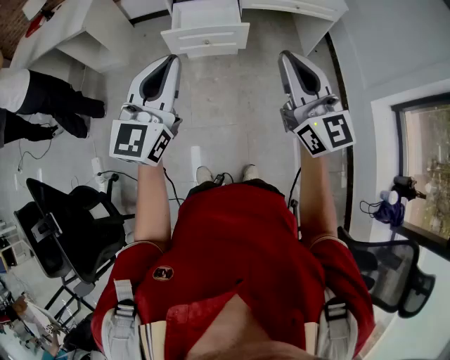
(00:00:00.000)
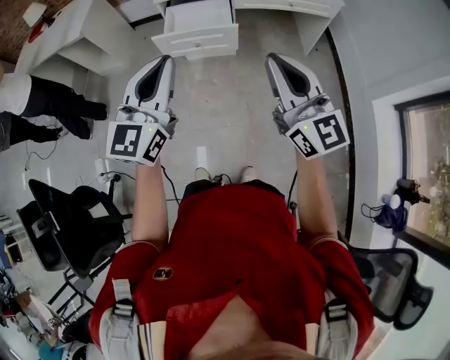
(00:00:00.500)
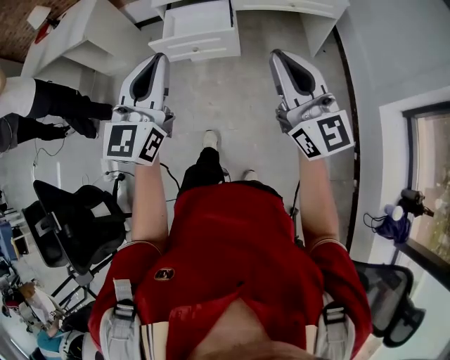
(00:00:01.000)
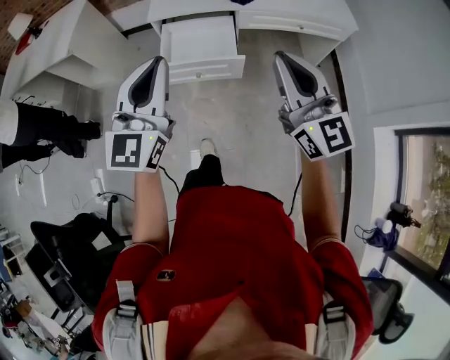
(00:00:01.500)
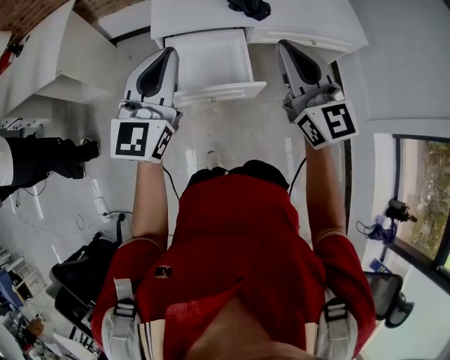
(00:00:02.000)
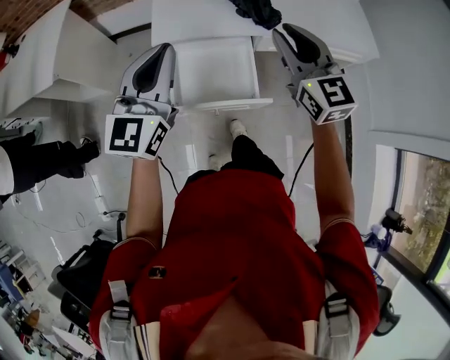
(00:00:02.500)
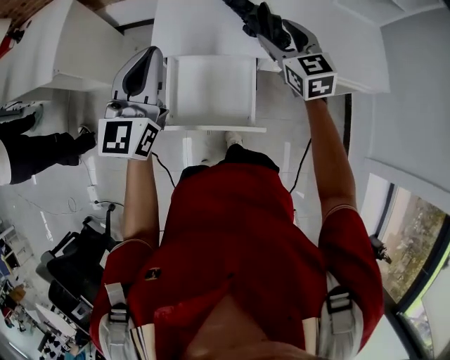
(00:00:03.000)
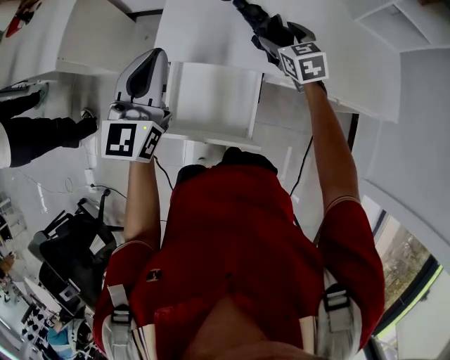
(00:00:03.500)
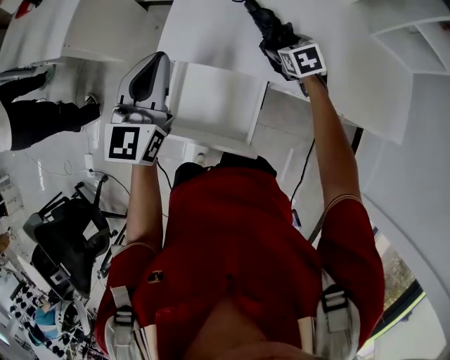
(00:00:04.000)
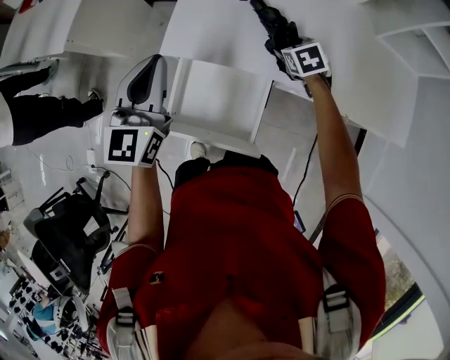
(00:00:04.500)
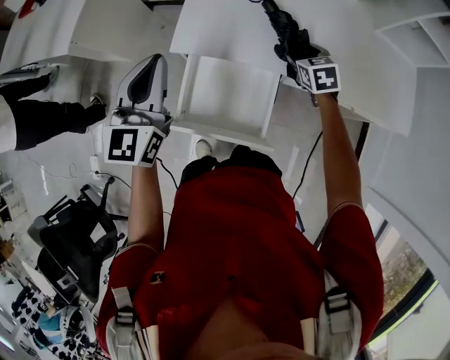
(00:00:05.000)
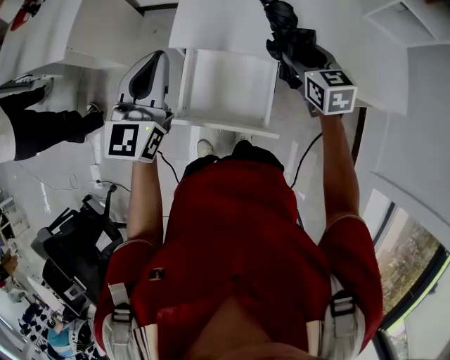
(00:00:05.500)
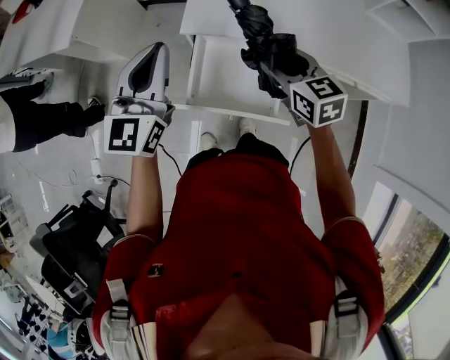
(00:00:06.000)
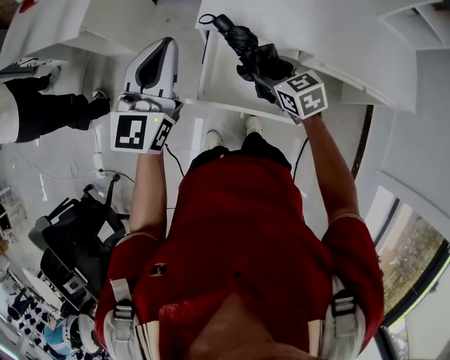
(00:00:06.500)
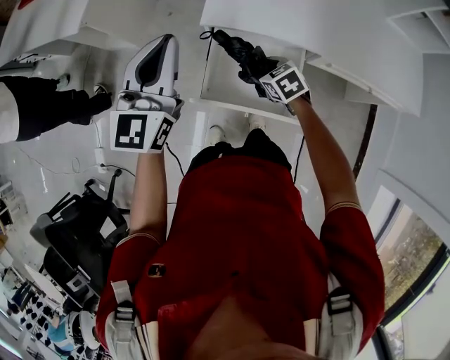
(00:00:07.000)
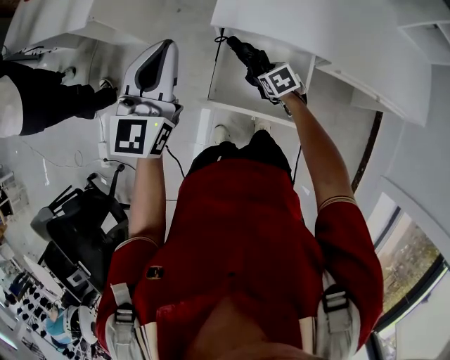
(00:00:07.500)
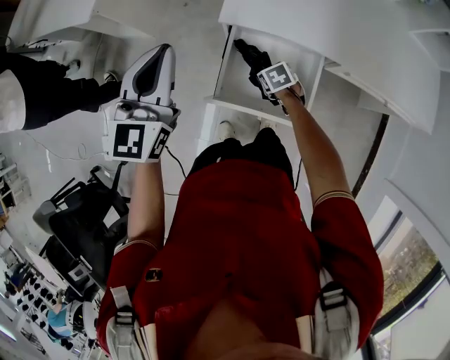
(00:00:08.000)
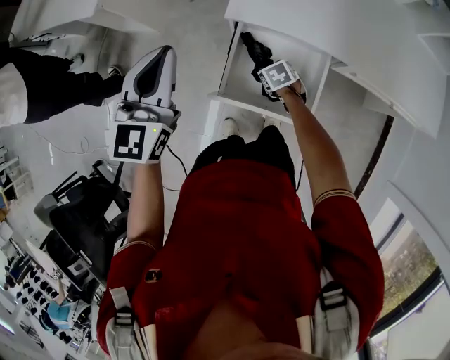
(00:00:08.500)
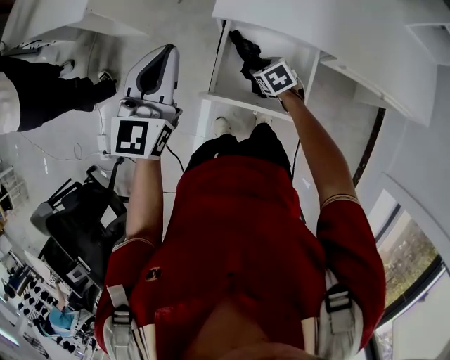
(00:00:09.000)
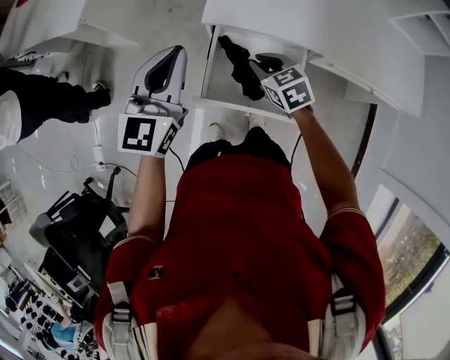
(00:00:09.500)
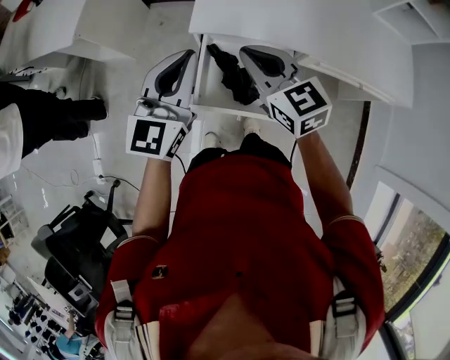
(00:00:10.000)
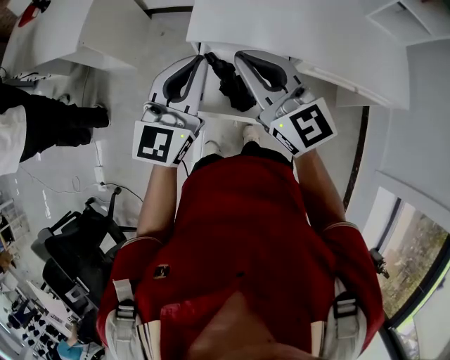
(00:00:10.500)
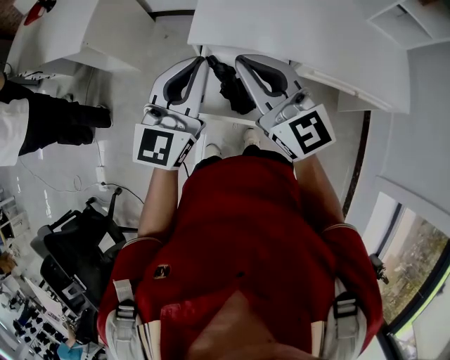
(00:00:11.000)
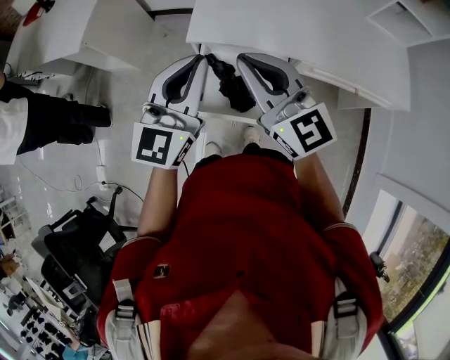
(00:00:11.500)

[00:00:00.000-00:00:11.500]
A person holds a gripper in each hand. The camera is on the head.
00:00:00.000 to 00:00:02.000: Both grippers travel together forward, roughly 40 cm.
00:00:02.000 to 00:00:04.000: The left gripper goes roughly 25 cm forward, and turns by some 20 degrees; the right gripper is displaced forward and downward by approximately 50 cm, points its fingers about 60 degrees further downward, and opens.
00:00:04.000 to 00:00:06.000: The right gripper shifts some 30 cm backward, to the left and upward, rotates some 30 degrees, and closes up, while the left gripper moves to the left and backward, about 15 cm.
00:00:06.000 to 00:00:07.500: The left gripper shifts some 5 cm to the left; the right gripper moves downward, roughly 25 cm, and points its fingers approximately 40 degrees further downward.
00:00:07.500 to 00:00:09.500: The right gripper goes some 15 cm upward, swivels approximately 20 degrees, and closes up.
00:00:09.500 to 00:00:11.500: The right gripper goes approximately 25 cm upward, and angles its fingers upward, by roughly 50 degrees, while the left gripper shifts roughly 10 cm to the right and upward.

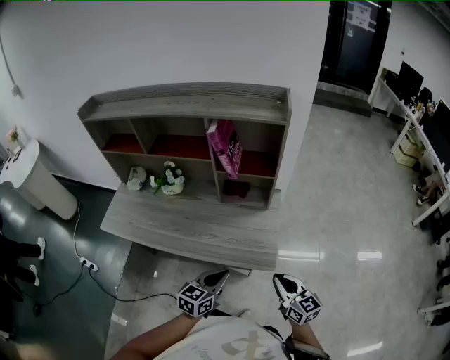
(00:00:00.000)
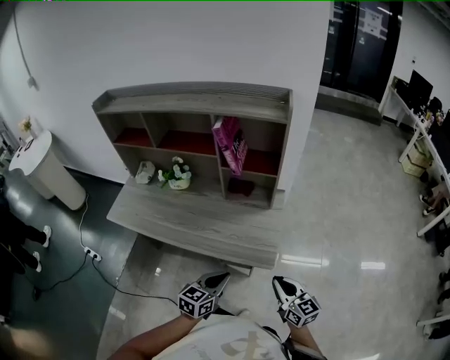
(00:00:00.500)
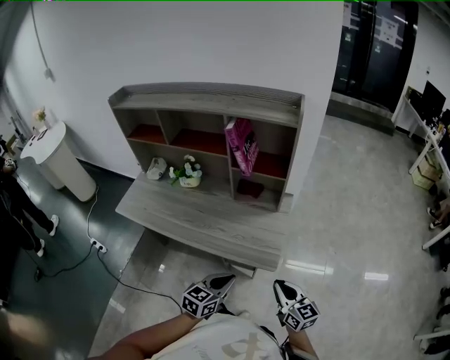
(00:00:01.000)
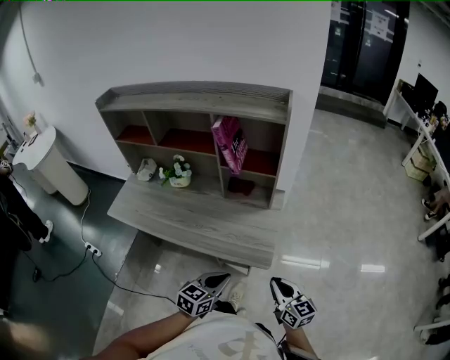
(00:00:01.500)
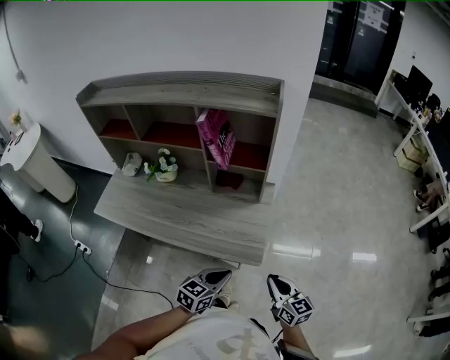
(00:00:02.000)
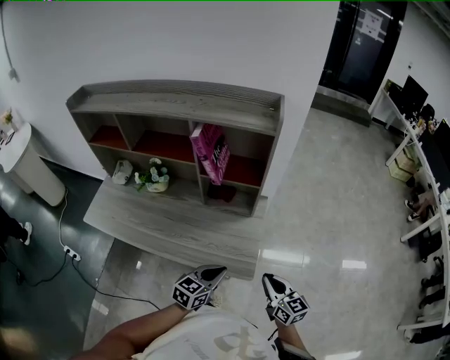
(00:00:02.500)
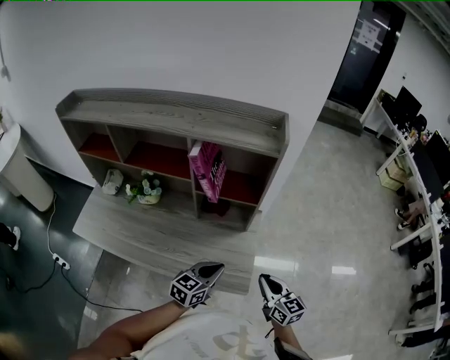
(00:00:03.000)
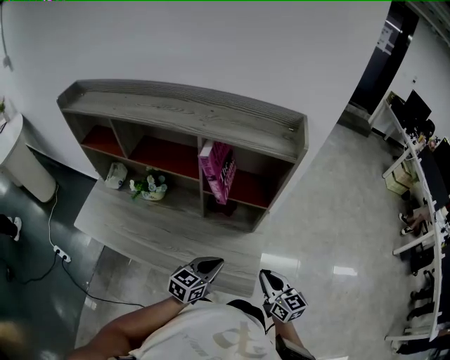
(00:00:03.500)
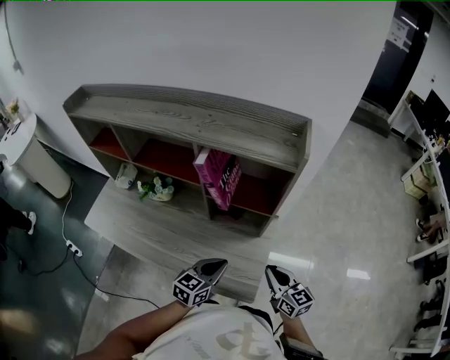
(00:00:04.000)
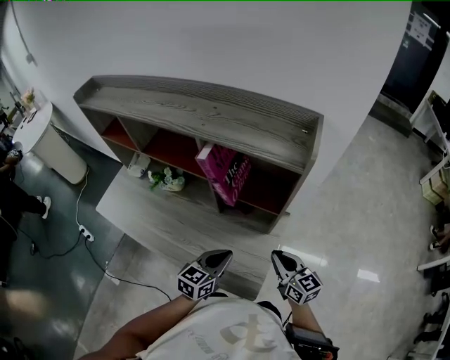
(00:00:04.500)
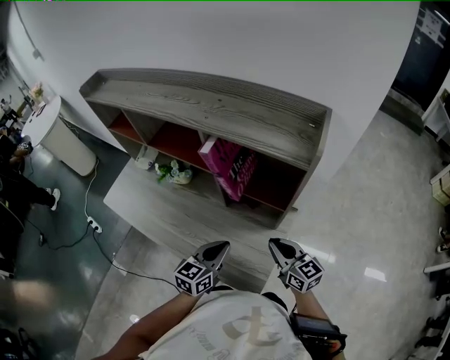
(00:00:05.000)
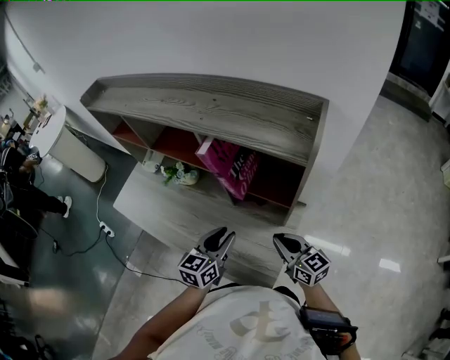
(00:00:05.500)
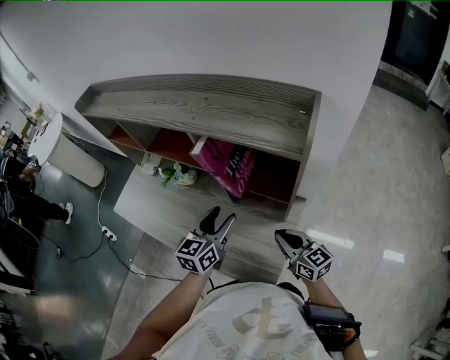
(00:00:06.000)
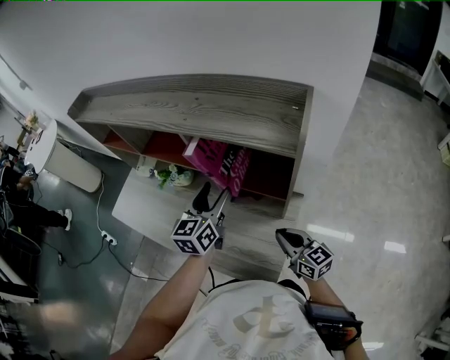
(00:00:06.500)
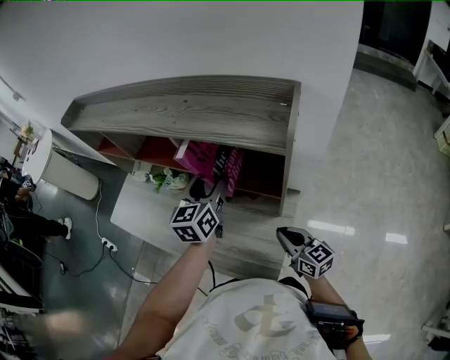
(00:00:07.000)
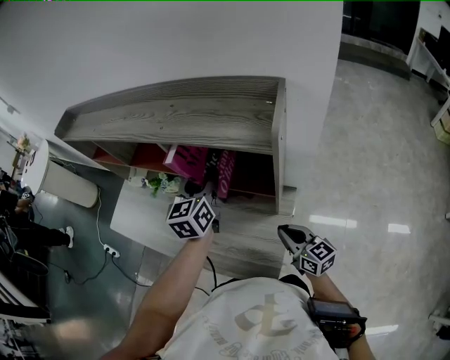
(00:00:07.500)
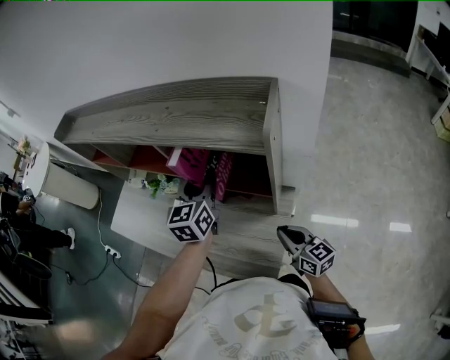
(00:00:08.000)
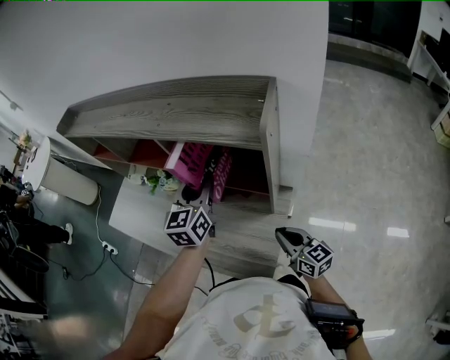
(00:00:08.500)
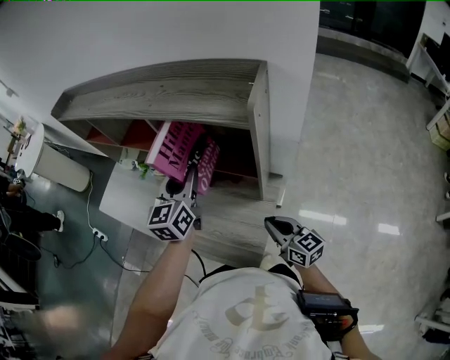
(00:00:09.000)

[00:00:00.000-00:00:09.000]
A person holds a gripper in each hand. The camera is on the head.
00:00:00.000 to 00:00:02.000: Both grippers travel together to the right, roughly 5 cm.
00:00:02.000 to 00:00:04.500: The grippers both shift forward by approximately 25 cm.
00:00:04.500 to 00:00:07.000: The left gripper moves forward and upward, roughly 25 cm, changes its angle by roughly 30 degrees, and opens.
00:00:07.000 to 00:00:09.000: The left gripper ends up about 5 cm from where it was, and closes its fingers.

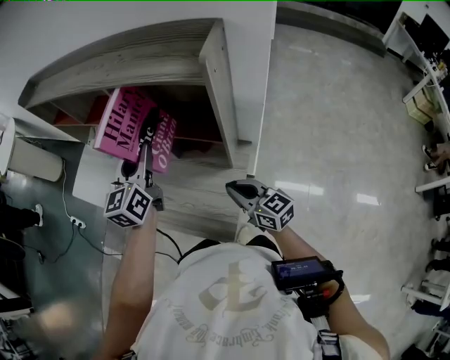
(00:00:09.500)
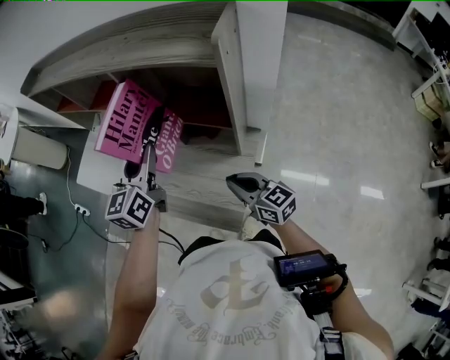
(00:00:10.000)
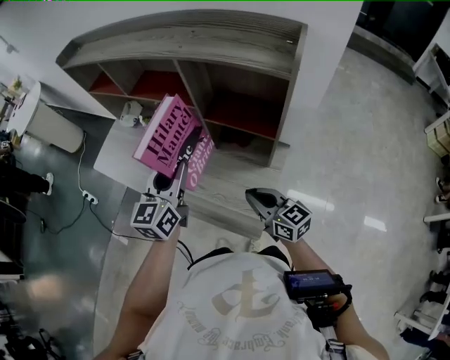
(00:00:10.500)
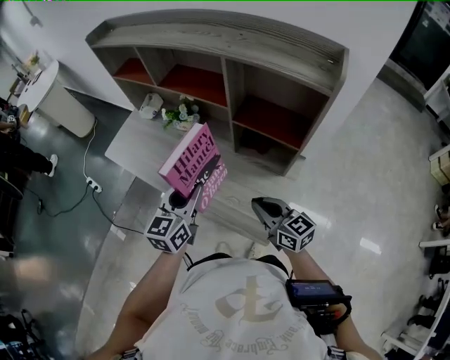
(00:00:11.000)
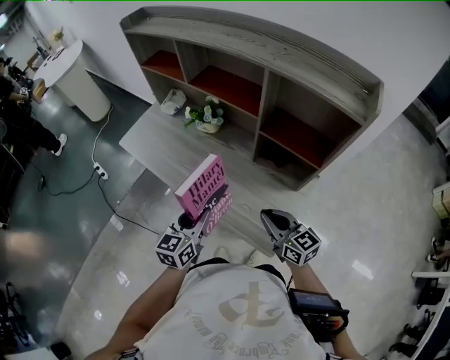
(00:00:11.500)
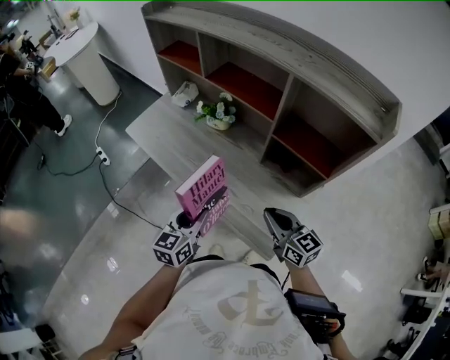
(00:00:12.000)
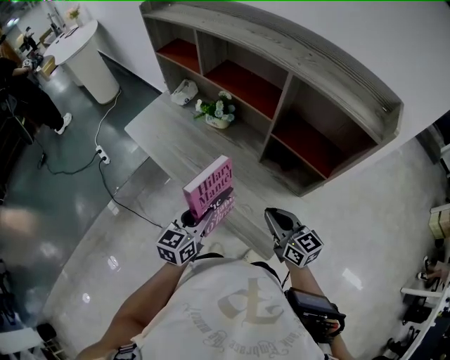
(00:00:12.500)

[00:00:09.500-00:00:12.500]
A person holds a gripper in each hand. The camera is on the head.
00:00:09.500 to 00:00:11.000: The right gripper shifts about 15 cm to the left and upward, while the left gripper heads to the left and backward, covering about 20 cm.
00:00:11.000 to 00:00:12.500: The left gripper travels downward and to the left by approximately 10 cm.

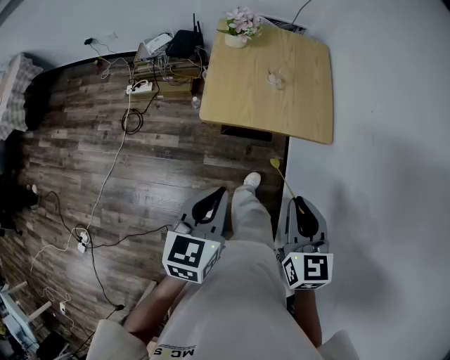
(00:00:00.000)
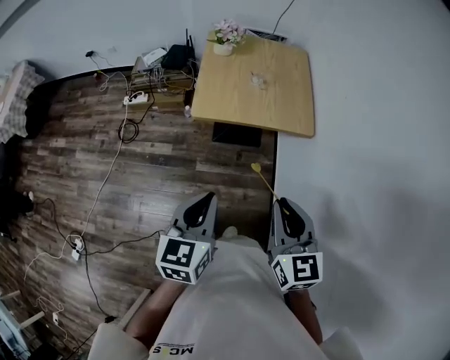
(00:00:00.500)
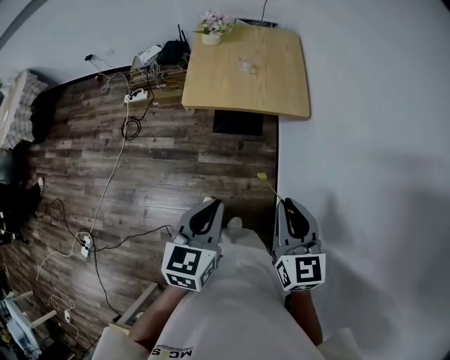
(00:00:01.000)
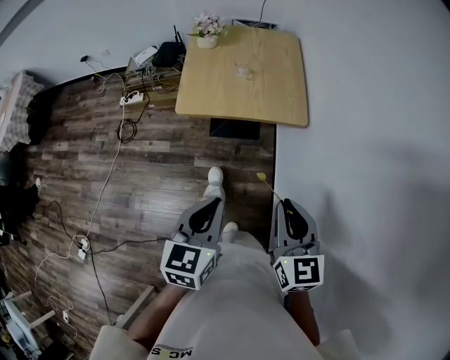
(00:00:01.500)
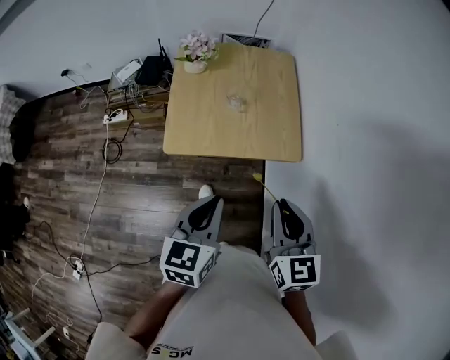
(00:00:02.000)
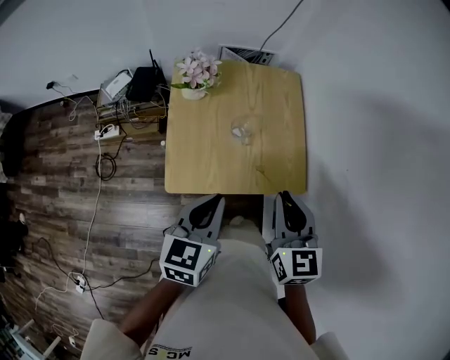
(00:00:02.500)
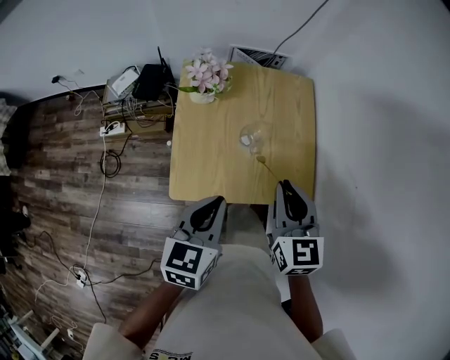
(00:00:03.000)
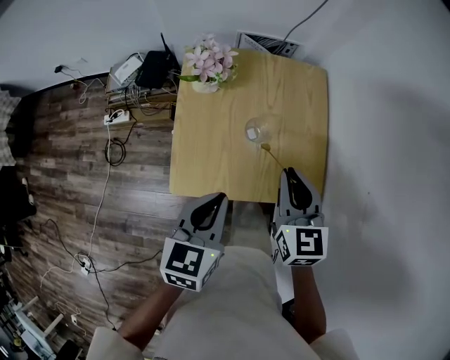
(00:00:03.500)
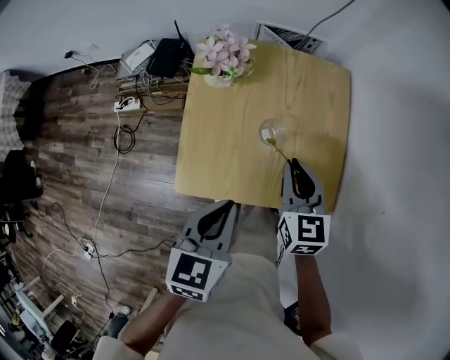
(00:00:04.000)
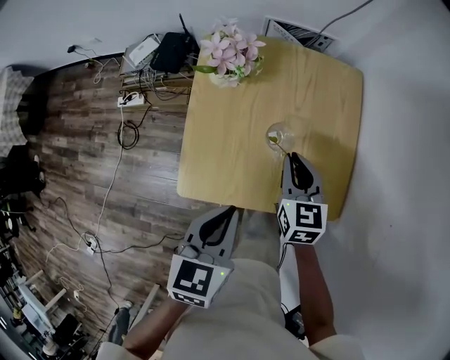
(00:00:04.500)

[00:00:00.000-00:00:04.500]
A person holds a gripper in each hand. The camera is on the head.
00:00:00.000 to 00:00:02.000: The left gripper moves to the right and forward, about 15 cm. Meanwhile the right gripper is displaced forward and to the right by about 10 cm.
00:00:02.000 to 00:00:04.500: The right gripper heads forward and downward, covering some 40 cm, while the left gripper is displaced forward and downward by approximately 25 cm.
